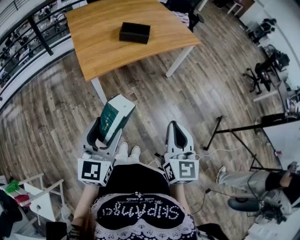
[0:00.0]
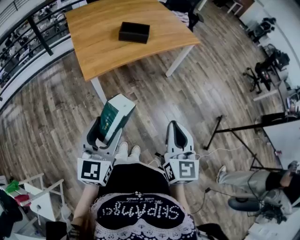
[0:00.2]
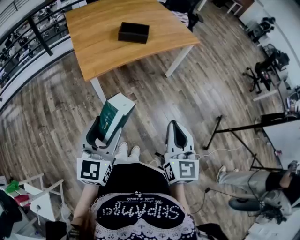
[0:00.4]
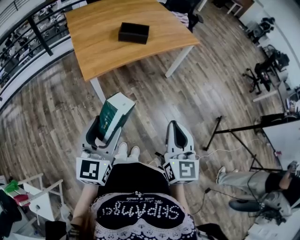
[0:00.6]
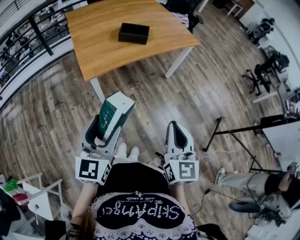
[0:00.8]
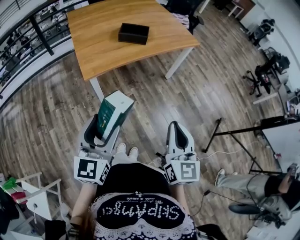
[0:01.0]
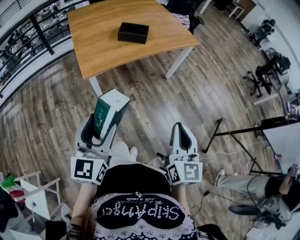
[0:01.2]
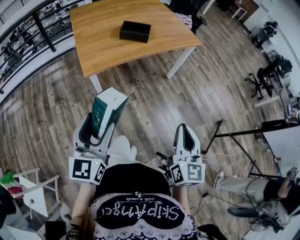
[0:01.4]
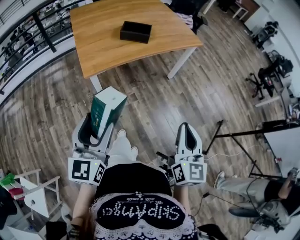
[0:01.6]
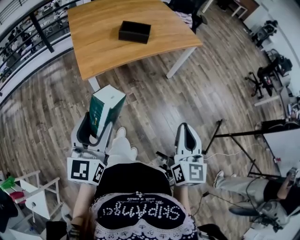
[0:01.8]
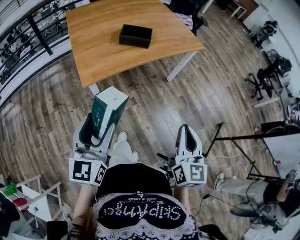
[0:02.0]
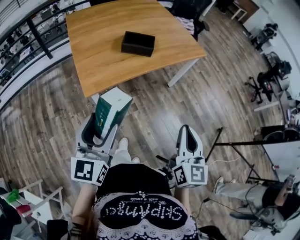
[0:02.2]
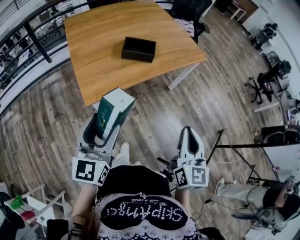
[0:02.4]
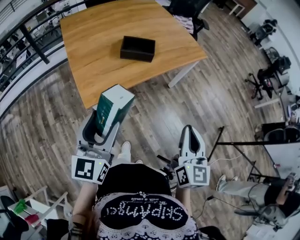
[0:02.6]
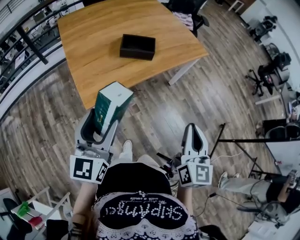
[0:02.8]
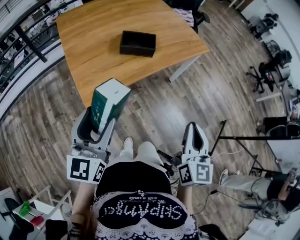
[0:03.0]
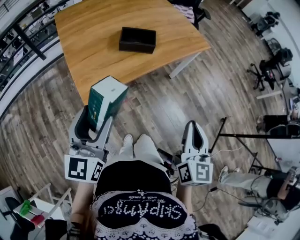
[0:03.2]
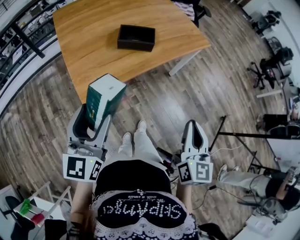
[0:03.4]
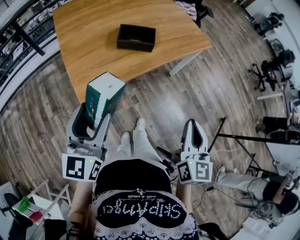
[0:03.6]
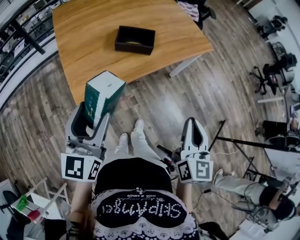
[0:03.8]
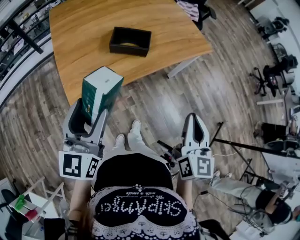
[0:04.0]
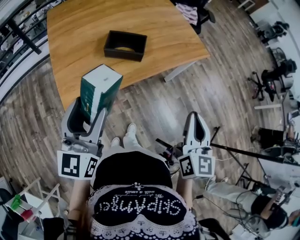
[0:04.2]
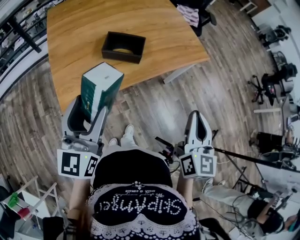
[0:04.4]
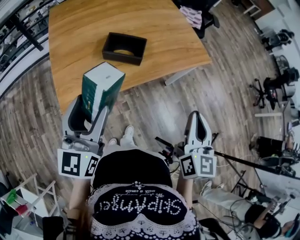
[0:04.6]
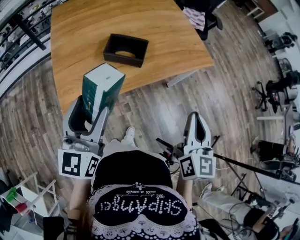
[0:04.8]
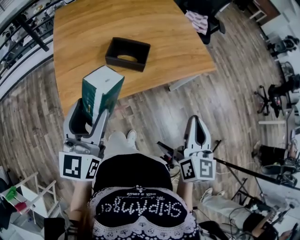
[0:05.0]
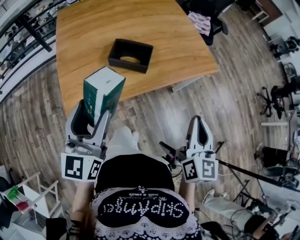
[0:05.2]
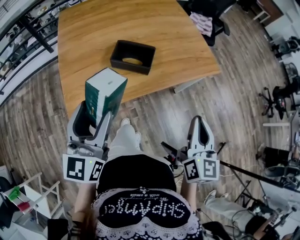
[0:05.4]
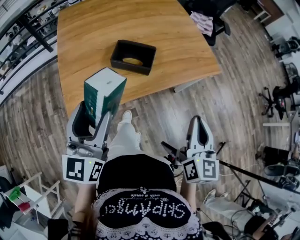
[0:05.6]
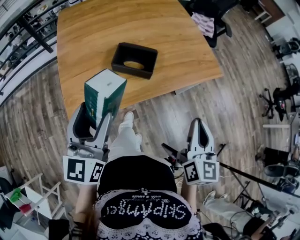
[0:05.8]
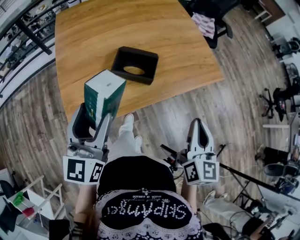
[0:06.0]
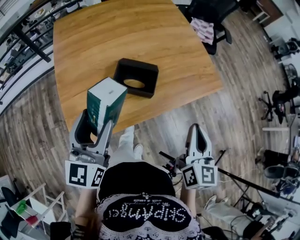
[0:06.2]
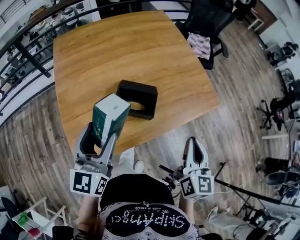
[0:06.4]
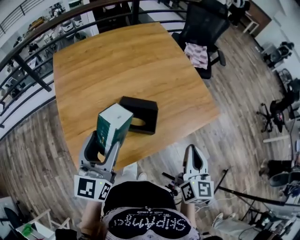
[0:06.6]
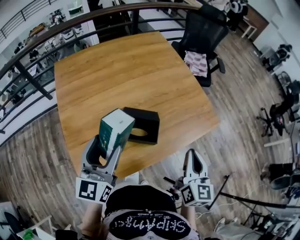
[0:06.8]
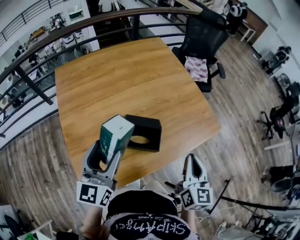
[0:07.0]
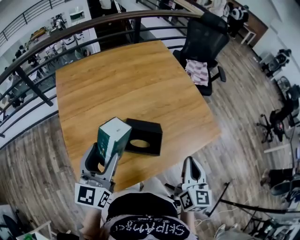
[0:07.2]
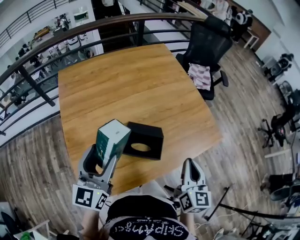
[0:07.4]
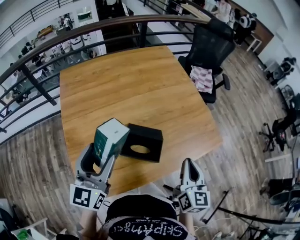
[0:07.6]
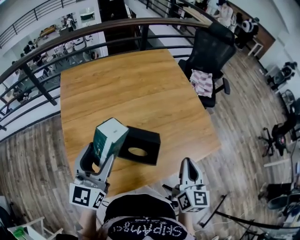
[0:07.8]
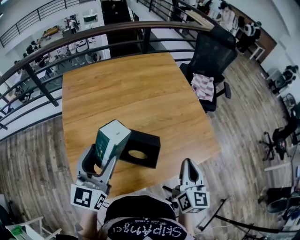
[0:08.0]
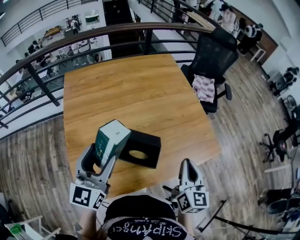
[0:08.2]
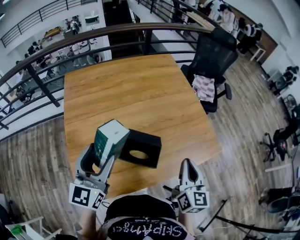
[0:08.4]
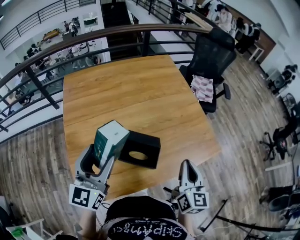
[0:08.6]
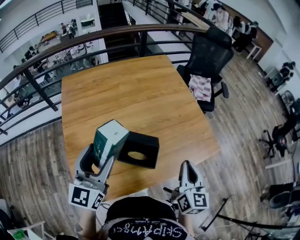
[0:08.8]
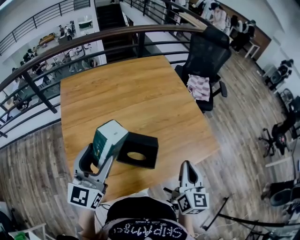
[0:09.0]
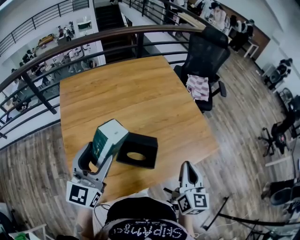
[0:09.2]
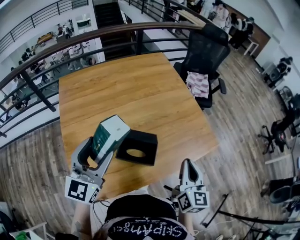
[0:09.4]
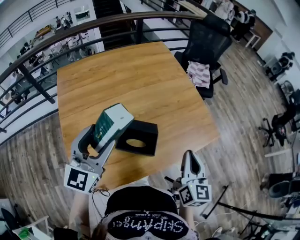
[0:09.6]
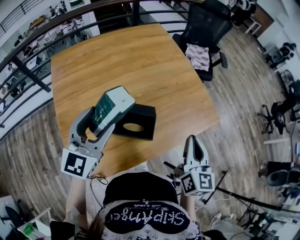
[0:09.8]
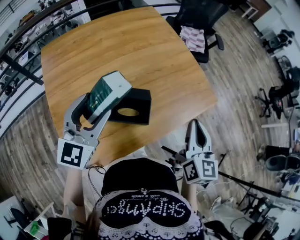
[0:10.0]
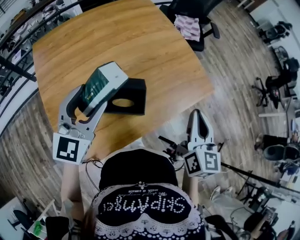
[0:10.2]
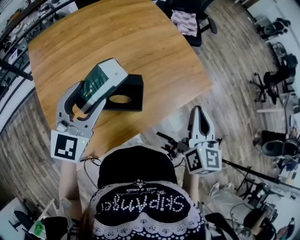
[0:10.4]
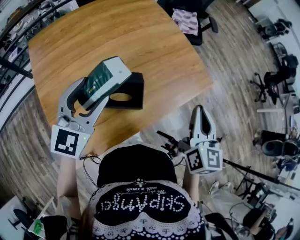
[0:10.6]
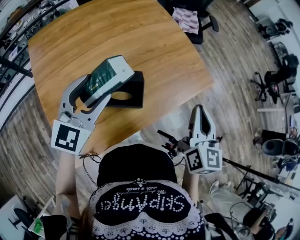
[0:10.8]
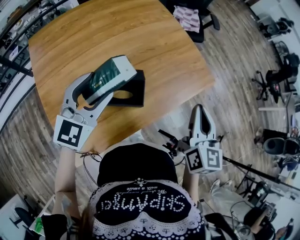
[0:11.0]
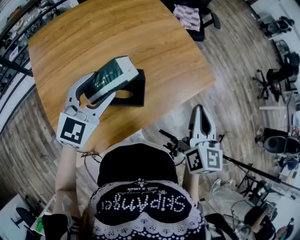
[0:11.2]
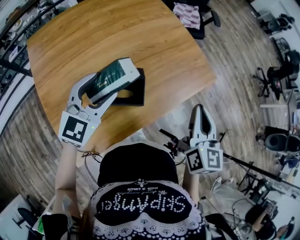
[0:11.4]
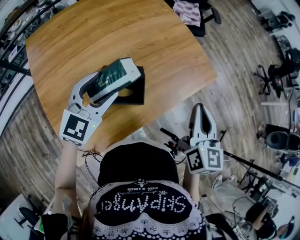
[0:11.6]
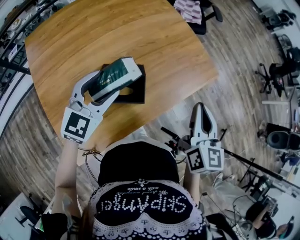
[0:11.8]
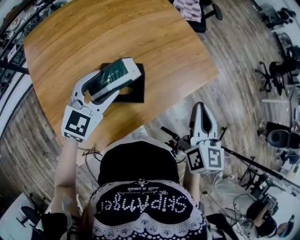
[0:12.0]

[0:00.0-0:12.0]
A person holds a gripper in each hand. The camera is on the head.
0:00.0 to 0:01.6: The right gripper shifts approximately 5 cm to the right.
0:01.6 to 0:03.0: Both grippers move forward and to the left, approximately 20 cm.
0:03.0 to 0:04.4: The two grippers go approximately 20 cm forward and to the right.
0:04.4 to 0:06.0: The two grippers go about 10 cm forward.
0:06.0 to 0:07.6: Both grippers move forward, roughly 20 cm.
0:07.6 to 0:09.0: The grippers move only a little.
0:09.0 to 0:10.4: The right gripper moves to the right, some 5 cm. Meanwhile the left gripper changes place by roughly 10 cm, and rotates roughly 20 degrees.
0:10.4 to 0:12.0: The left gripper moves downward, some 10 cm.

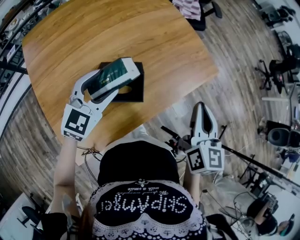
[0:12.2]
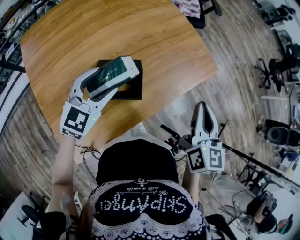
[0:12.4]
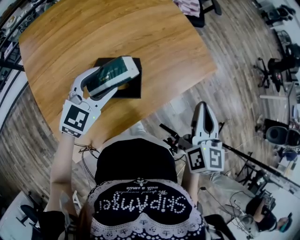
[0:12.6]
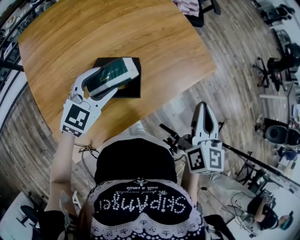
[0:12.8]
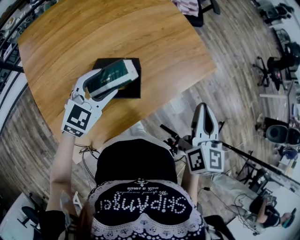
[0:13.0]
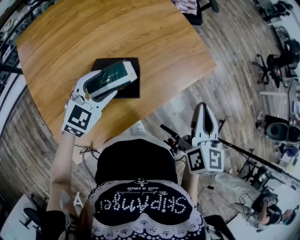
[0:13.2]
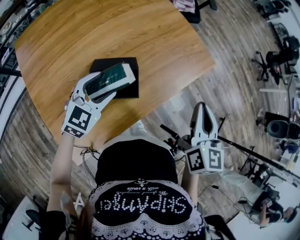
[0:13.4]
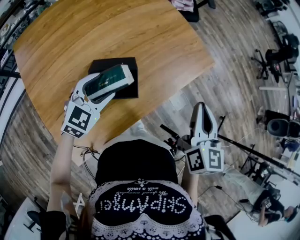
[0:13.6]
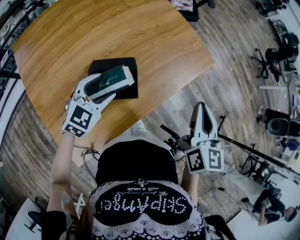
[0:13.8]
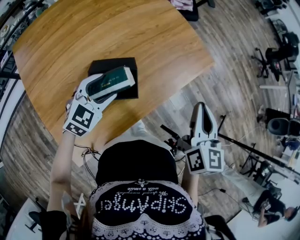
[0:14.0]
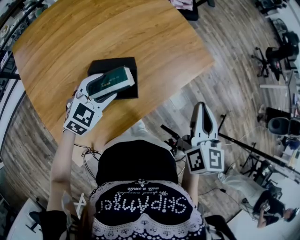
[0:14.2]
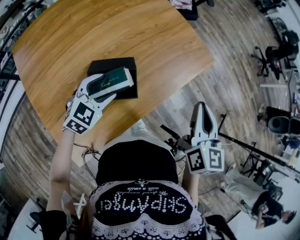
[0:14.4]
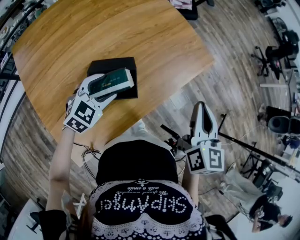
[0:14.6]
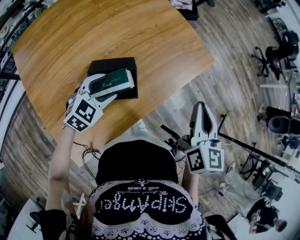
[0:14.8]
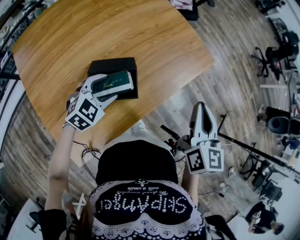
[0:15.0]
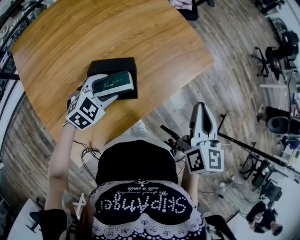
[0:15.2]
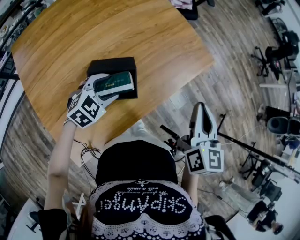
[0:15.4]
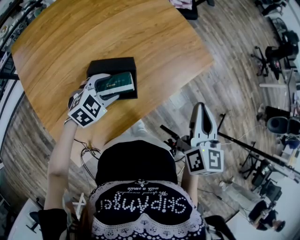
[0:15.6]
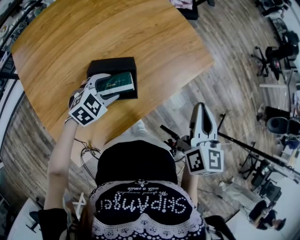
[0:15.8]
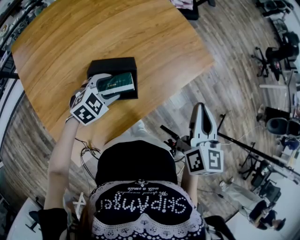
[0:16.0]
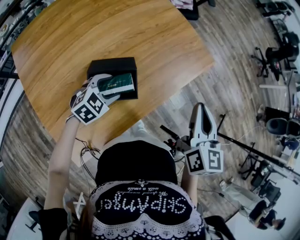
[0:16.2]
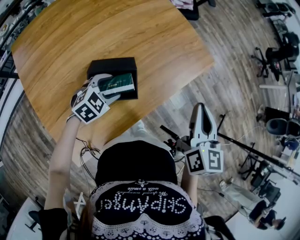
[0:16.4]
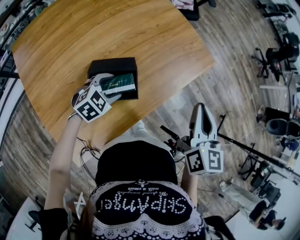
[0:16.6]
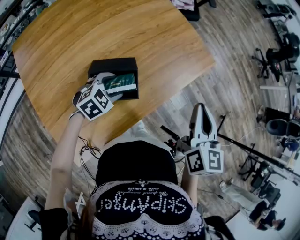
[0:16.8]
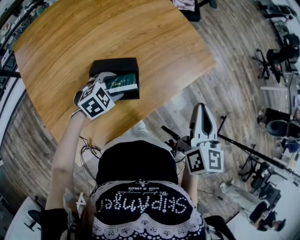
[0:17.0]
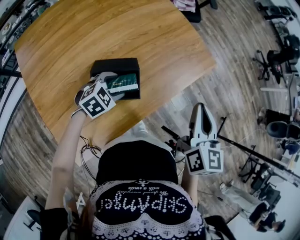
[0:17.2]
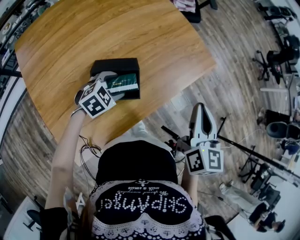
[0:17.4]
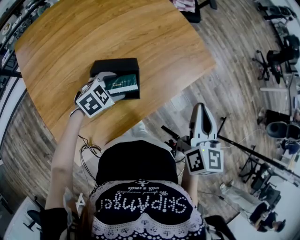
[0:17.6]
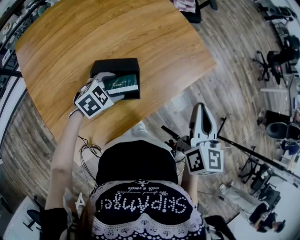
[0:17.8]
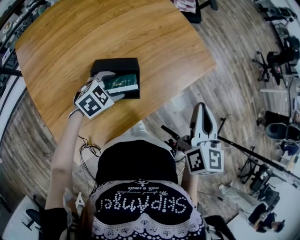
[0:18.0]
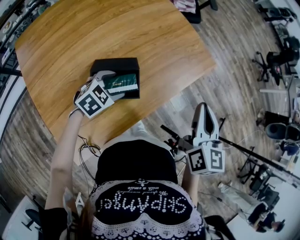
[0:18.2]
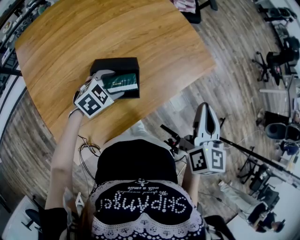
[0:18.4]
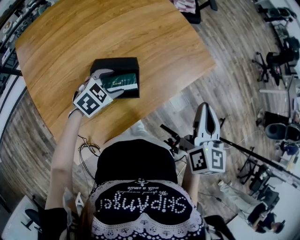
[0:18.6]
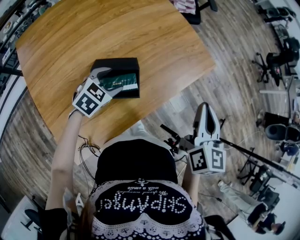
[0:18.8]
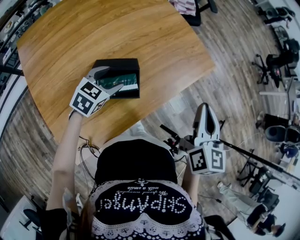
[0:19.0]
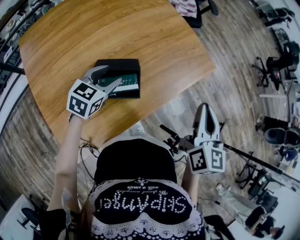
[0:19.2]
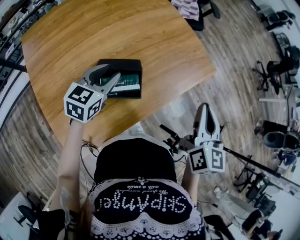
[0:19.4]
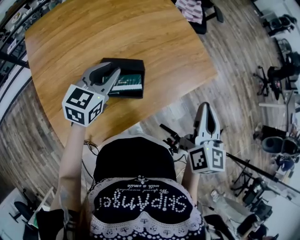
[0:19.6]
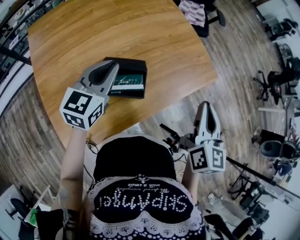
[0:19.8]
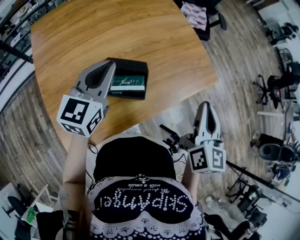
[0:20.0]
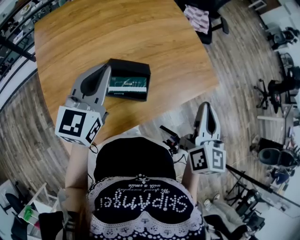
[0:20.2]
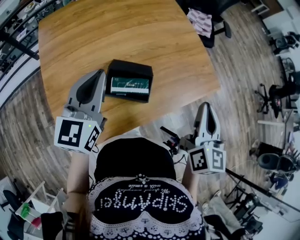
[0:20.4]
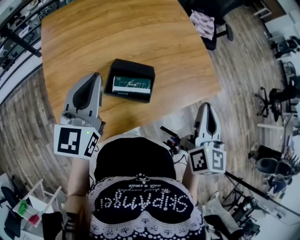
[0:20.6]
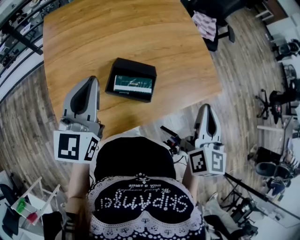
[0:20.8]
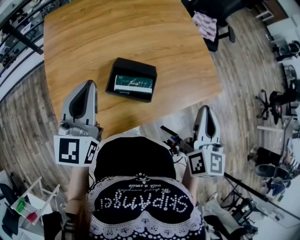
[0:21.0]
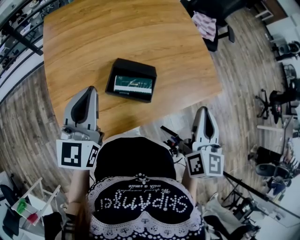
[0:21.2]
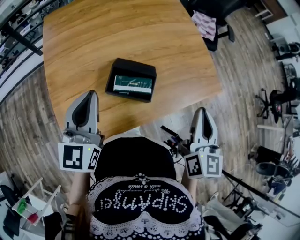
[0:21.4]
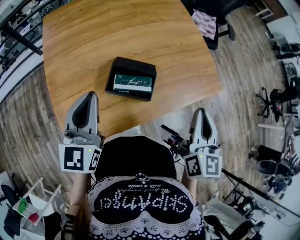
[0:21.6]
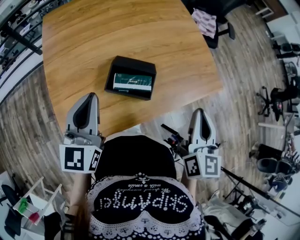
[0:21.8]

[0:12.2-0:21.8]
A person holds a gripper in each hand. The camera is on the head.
0:12.2 to 0:13.8: The left gripper travels downward by approximately 5 cm.
0:13.8 to 0:15.4: The left gripper travels downward by approximately 5 cm.
0:15.4 to 0:18.6: There are only small adjustments of the grippers.
0:18.6 to 0:20.2: The right gripper ends up roughly 5 cm from where it was; the left gripper moves upward, approximately 25 cm, angles its fingers upward, by about 40 degrees, and closes.
0:20.2 to 0:21.8: The left gripper moves backward, roughly 10 cm.

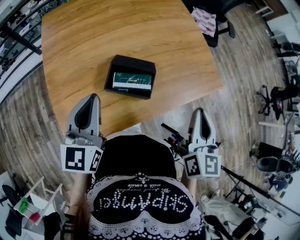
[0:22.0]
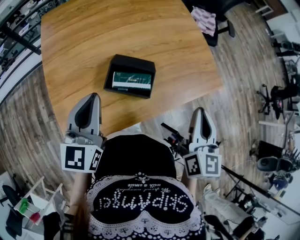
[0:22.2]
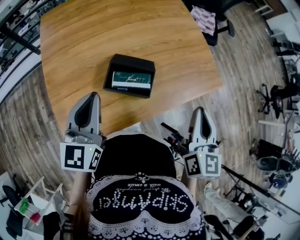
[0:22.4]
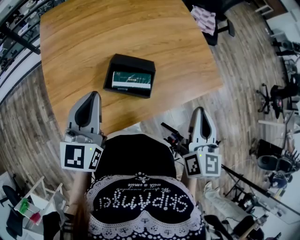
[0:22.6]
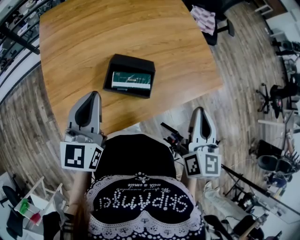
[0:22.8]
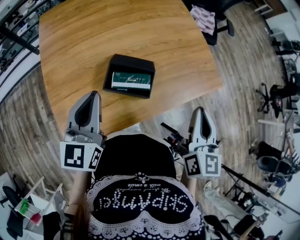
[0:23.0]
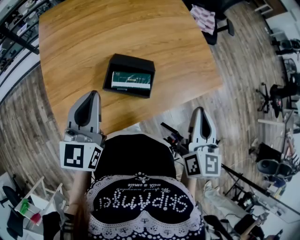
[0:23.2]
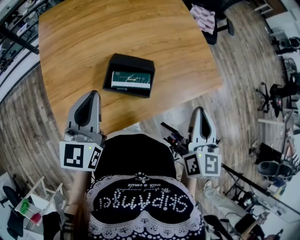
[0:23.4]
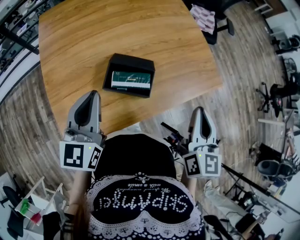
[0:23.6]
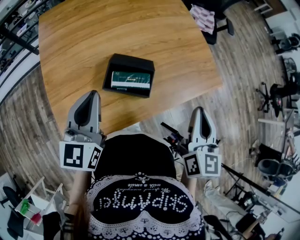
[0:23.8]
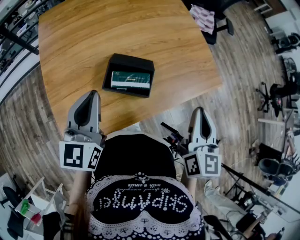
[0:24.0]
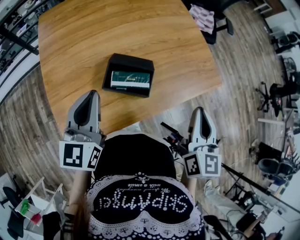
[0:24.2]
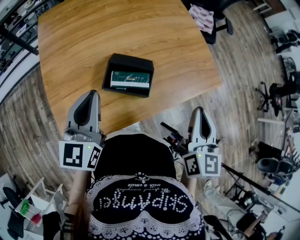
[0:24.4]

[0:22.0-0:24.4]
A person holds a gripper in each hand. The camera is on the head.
0:22.0 to 0:24.4: Both grippers stay about where they are.
